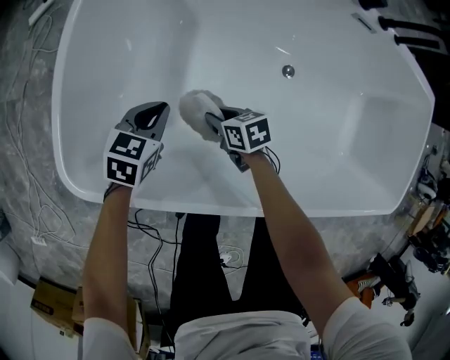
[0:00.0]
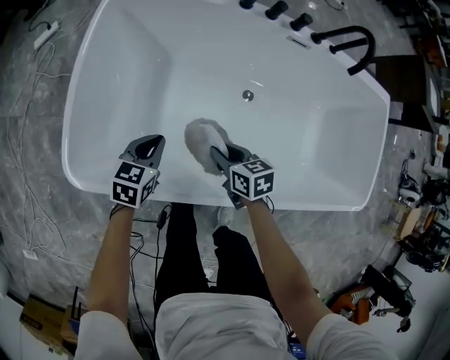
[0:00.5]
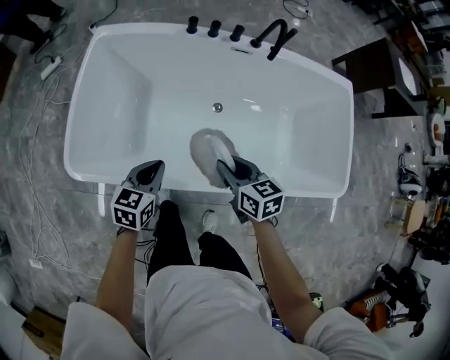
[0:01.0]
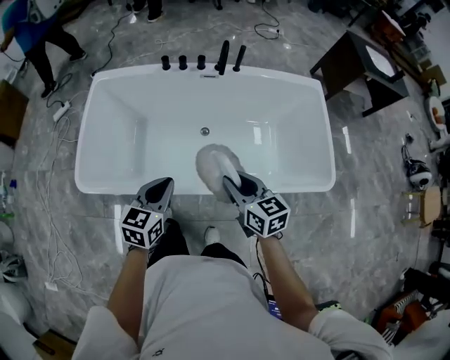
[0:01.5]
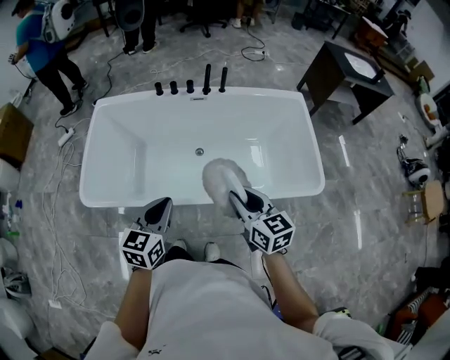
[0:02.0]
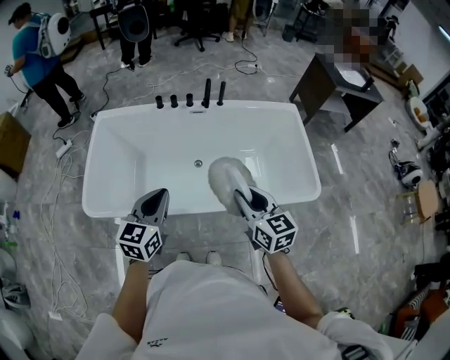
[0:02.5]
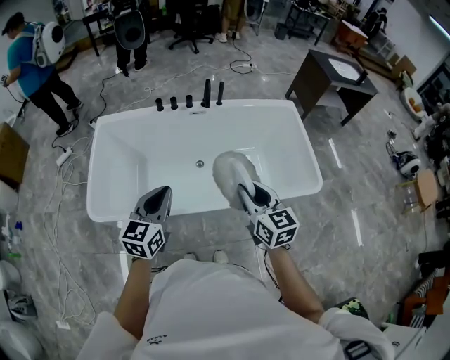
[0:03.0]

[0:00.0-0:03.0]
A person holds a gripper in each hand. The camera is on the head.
0:00.0 to 0:01.5: The left gripper goes roughly 40 cm upward.
0:01.5 to 0:03.0: The left gripper shifts some 10 cm upward.

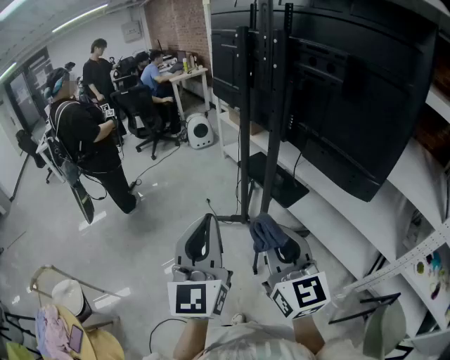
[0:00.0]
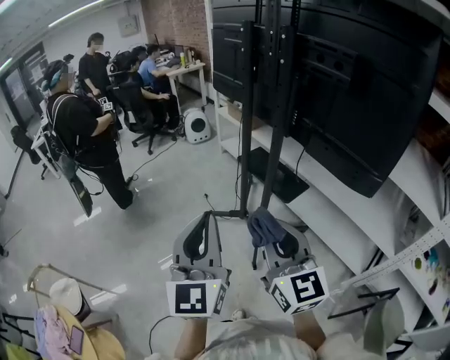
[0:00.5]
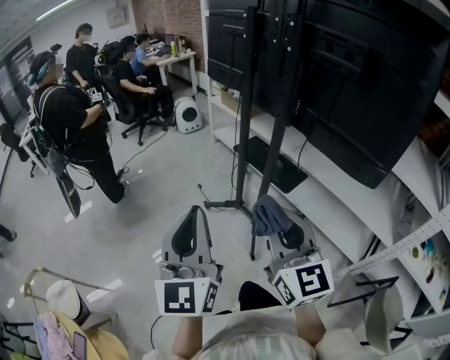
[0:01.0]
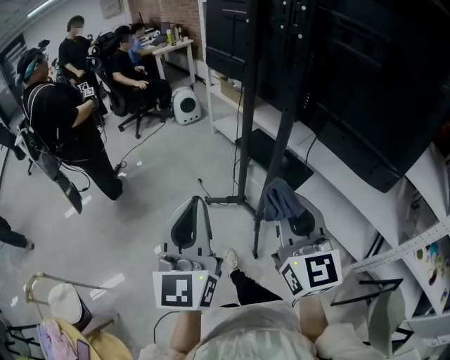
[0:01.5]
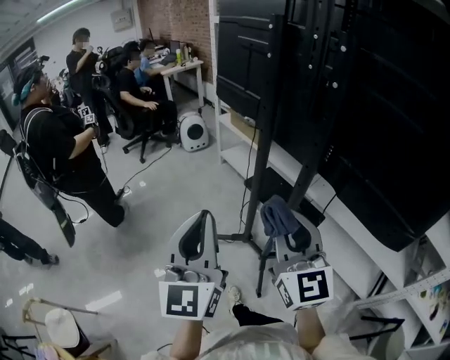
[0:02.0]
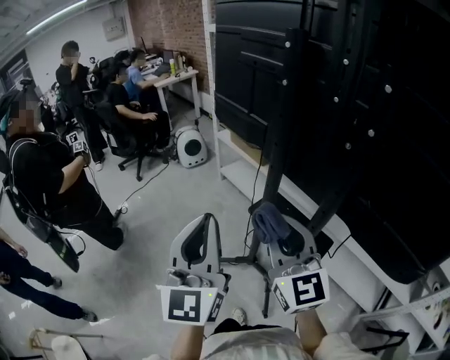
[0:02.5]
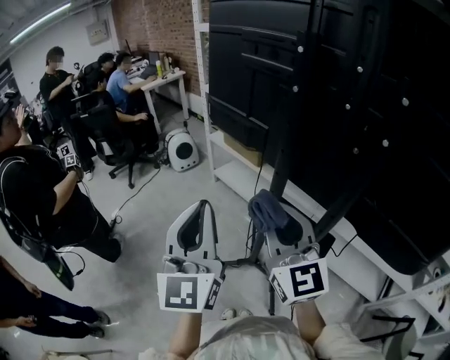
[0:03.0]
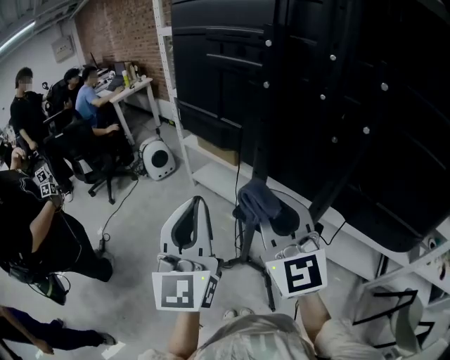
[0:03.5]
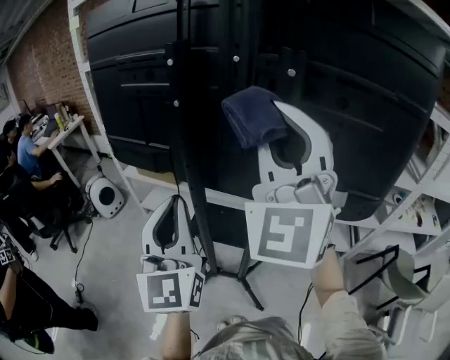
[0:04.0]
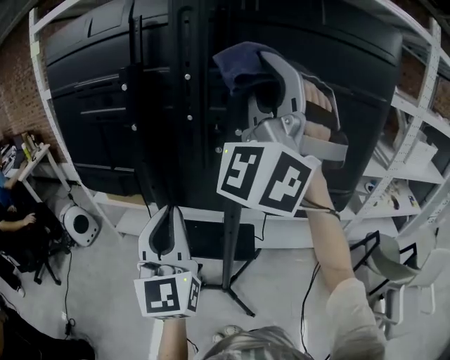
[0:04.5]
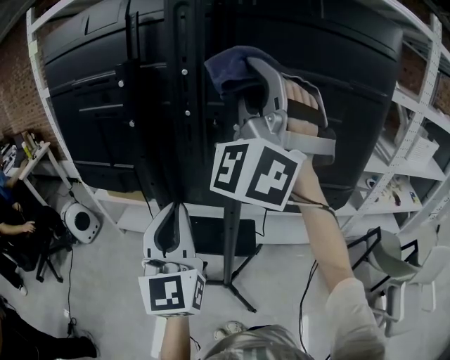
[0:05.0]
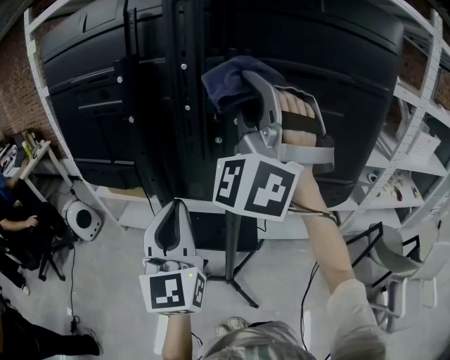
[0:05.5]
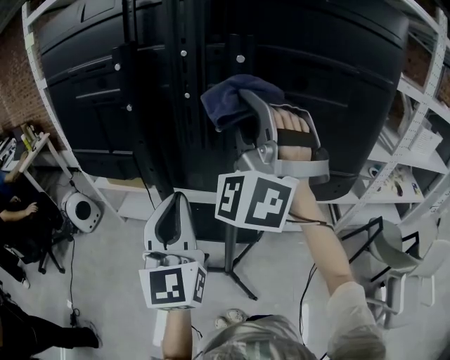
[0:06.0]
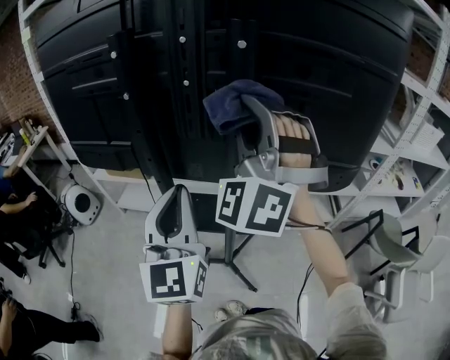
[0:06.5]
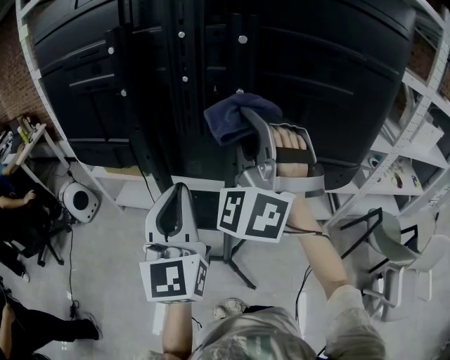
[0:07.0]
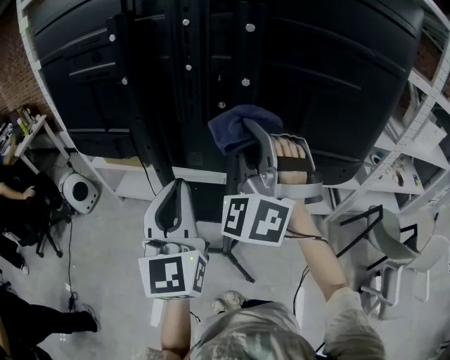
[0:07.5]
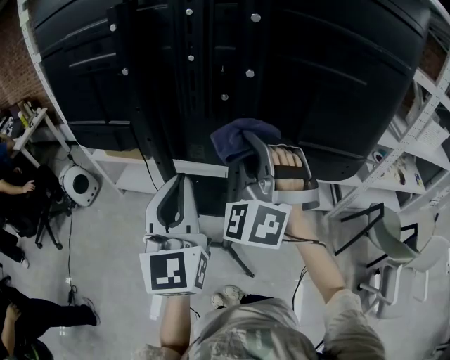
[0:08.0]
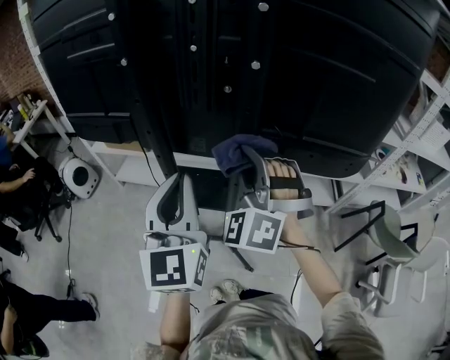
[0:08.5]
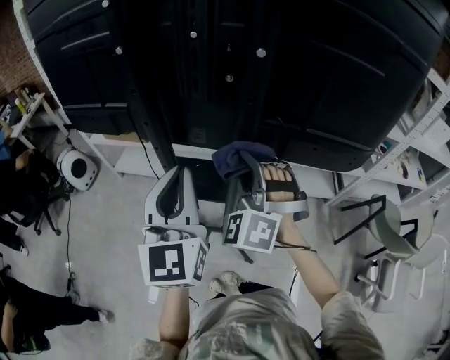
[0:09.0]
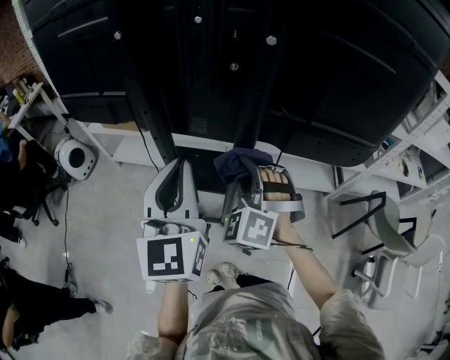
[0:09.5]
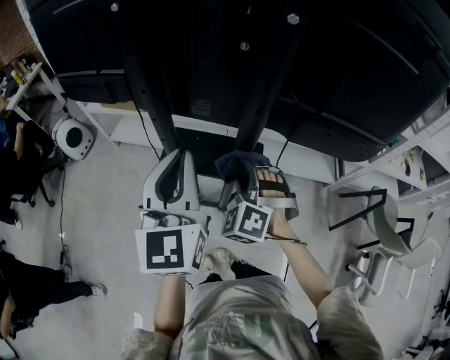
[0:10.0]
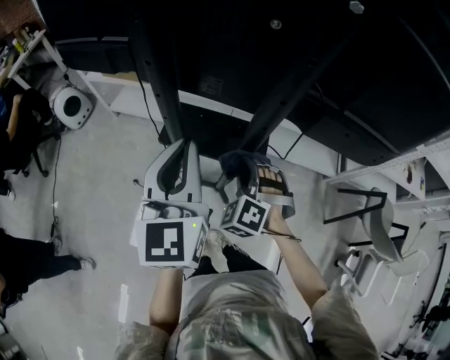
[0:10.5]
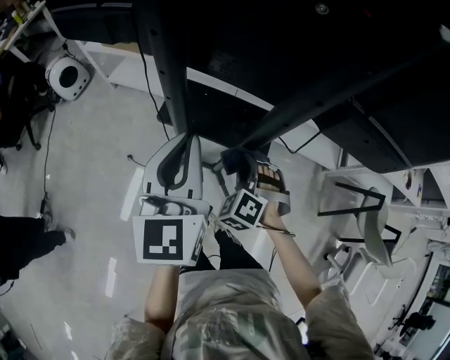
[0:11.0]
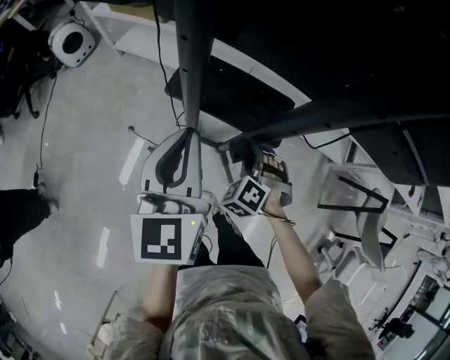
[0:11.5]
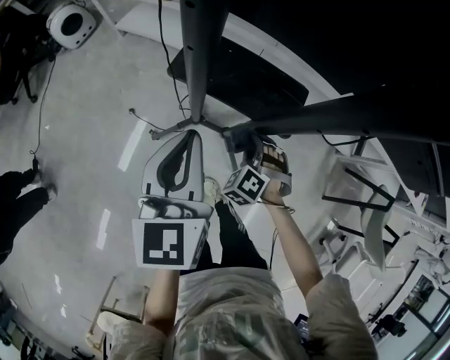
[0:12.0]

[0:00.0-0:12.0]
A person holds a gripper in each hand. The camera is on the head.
0:00.0 to 0:02.0: The two grippers go about 25 cm forward.
0:02.0 to 0:04.0: The left gripper moves roughly 25 cm, and rotates about 30 degrees, while the right gripper shifts approximately 25 cm upward, and swivels some 70 degrees.
0:04.0 to 0:06.0: The left gripper is displaced to the right by some 5 cm. Meanwhile the right gripper is displaced forward by roughly 5 cm, moves some 10 cm upward and comes back, and turns by roughly 40 degrees.
0:06.0 to 0:08.0: The right gripper heads downward, covering some 15 cm.
0:08.0 to 0:10.0: The left gripper moves downward, some 5 cm, while the right gripper goes about 25 cm downward, and rotates about 30 degrees.
0:10.0 to 0:12.0: The grippers both shift downward by roughly 25 cm. The right gripper turns by roughly 30 degrees, while the left gripper changes its angle by about 20 degrees.

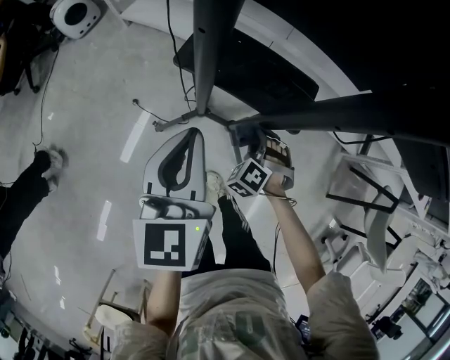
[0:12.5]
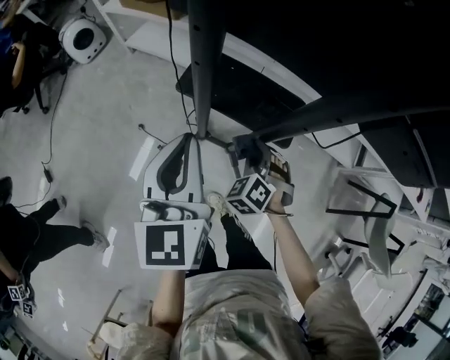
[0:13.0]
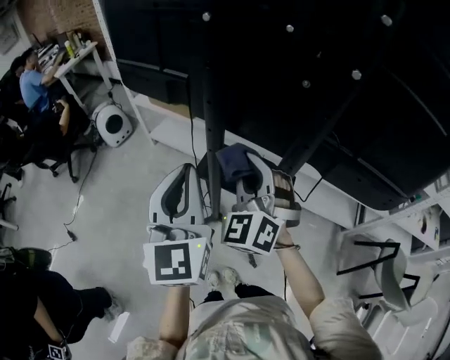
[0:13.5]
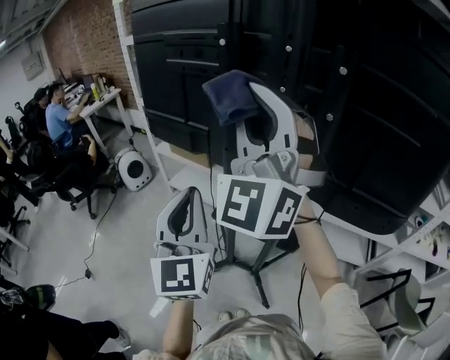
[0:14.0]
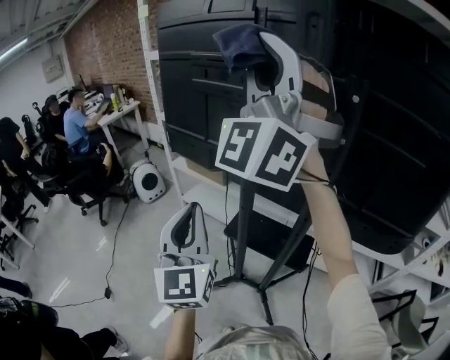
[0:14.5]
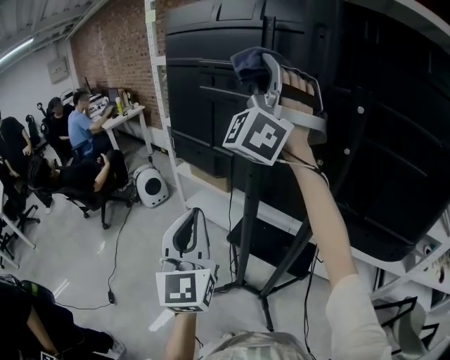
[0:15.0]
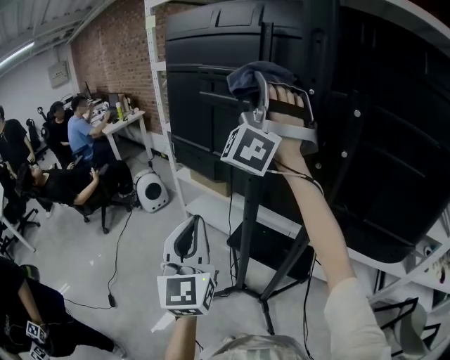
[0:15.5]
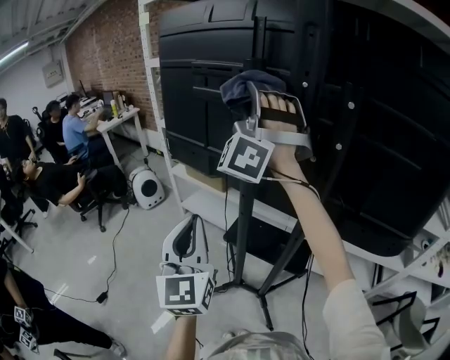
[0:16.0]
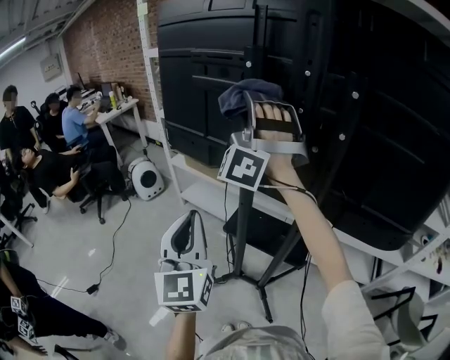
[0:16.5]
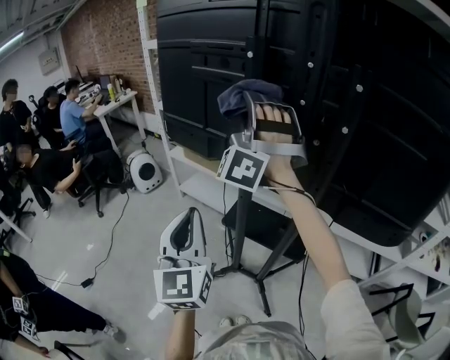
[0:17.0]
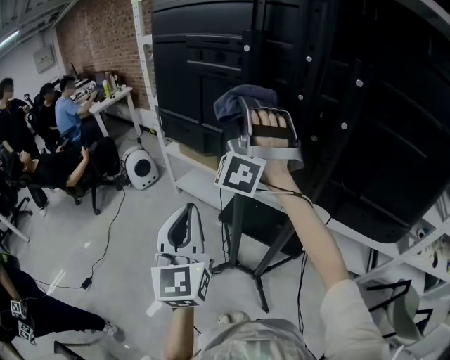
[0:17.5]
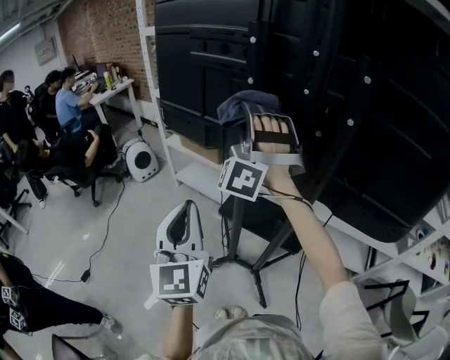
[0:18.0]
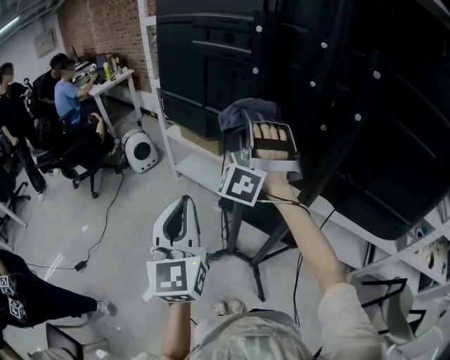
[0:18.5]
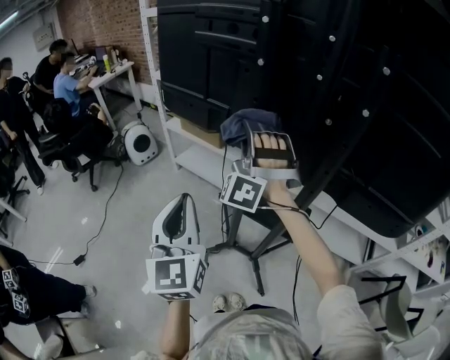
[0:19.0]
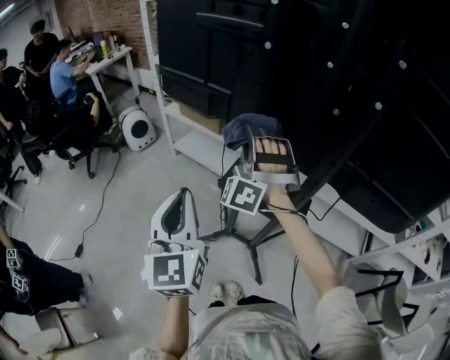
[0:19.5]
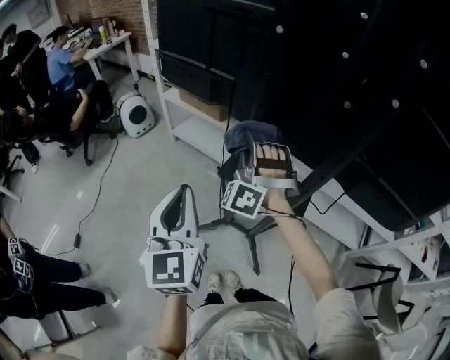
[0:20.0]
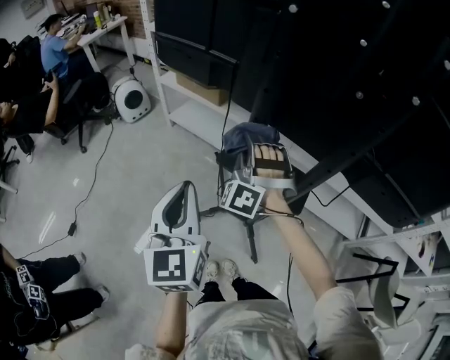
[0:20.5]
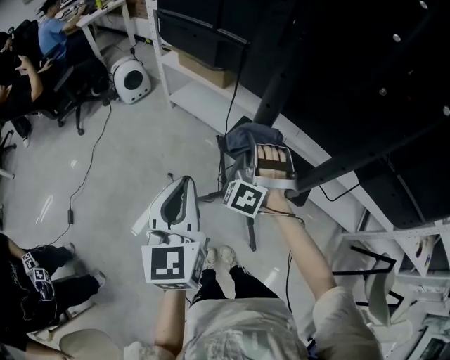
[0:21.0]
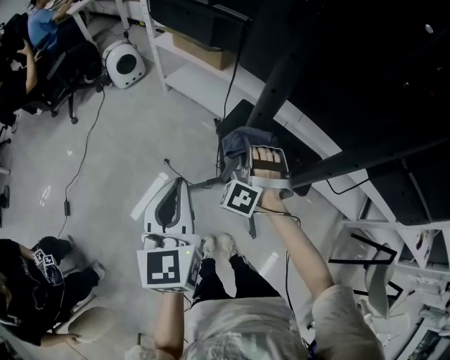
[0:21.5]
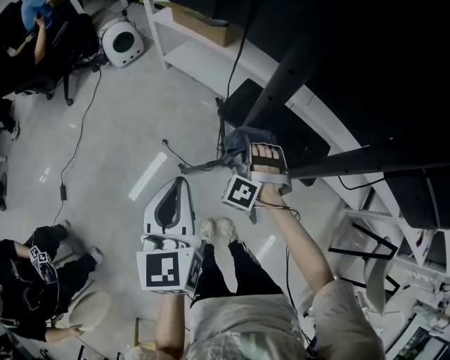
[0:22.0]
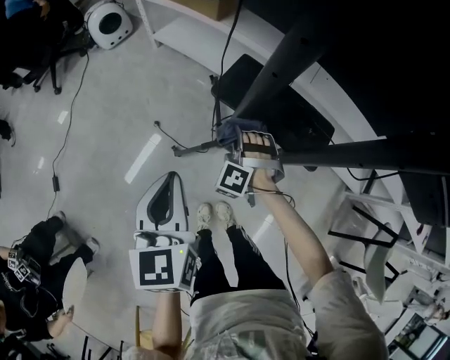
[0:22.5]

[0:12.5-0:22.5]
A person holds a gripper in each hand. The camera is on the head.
0:12.5 to 0:14.5: The right gripper is displaced upward by approximately 90 cm, and points its fingers roughly 90 degrees further upward; the left gripper shifts some 30 cm upward, and tips its fingers upward by approximately 30 degrees.
0:14.5 to 0:16.5: The right gripper heads downward and forward, covering about 15 cm, and rotates roughly 30 degrees.
0:16.5 to 0:18.5: The right gripper goes roughly 10 cm downward.
0:18.5 to 0:20.5: The right gripper shifts about 25 cm downward, and turns by roughly 20 degrees. Meanwhile the left gripper moves downward, approximately 10 cm.
0:20.5 to 0:22.5: The left gripper shifts approximately 20 cm downward, while the right gripper moves downward, some 30 cm, and swivels about 30 degrees.

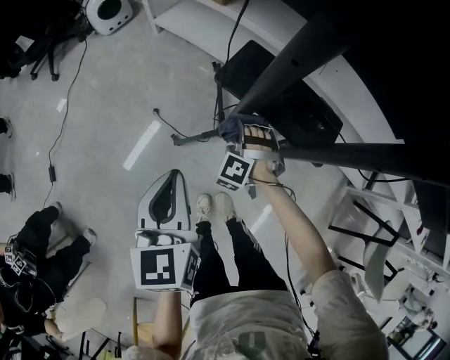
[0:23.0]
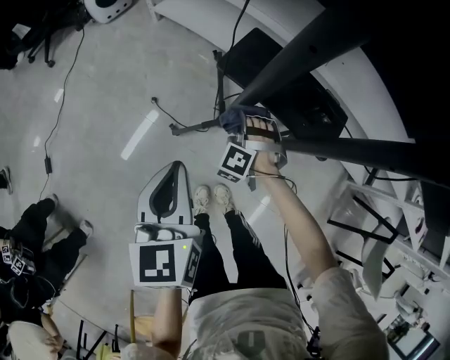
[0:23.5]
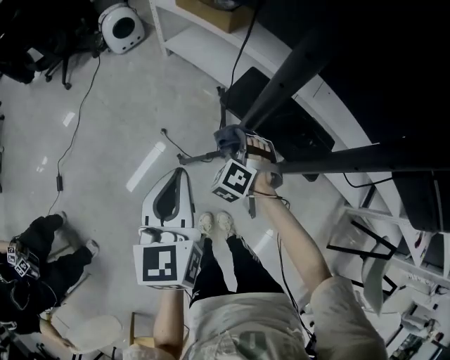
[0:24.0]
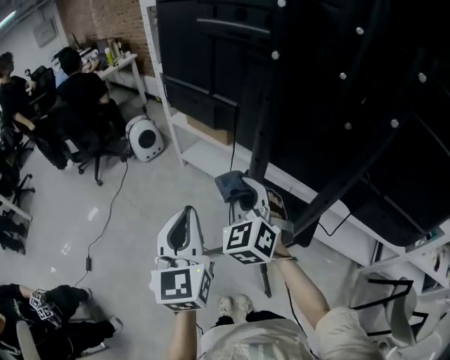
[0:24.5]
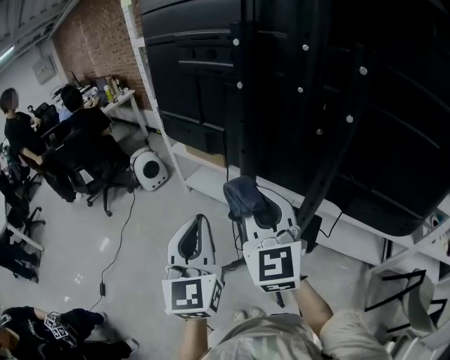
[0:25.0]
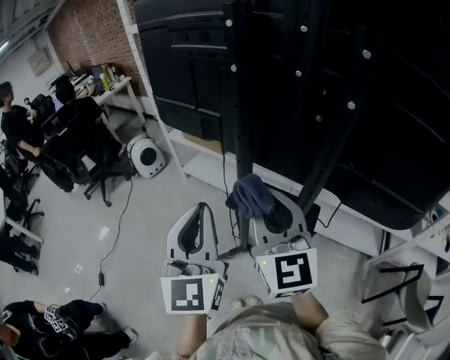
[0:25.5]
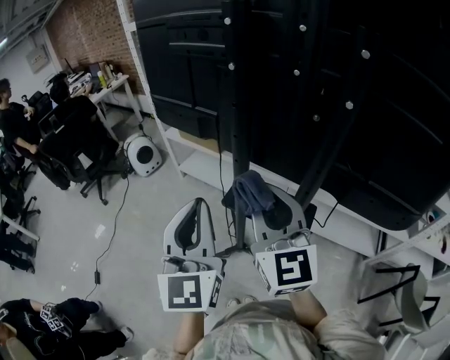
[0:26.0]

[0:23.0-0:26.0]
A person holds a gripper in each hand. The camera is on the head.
0:23.0 to 0:24.5: The right gripper travels upward by roughly 40 cm, and swivels approximately 50 degrees; the left gripper moves upward, roughly 25 cm, and turns by some 30 degrees.
0:24.5 to 0:26.0: The left gripper is displaced upward and to the right by some 10 cm, while the right gripper travels upward, backward and to the right by some 20 cm, and turns by roughly 40 degrees.
